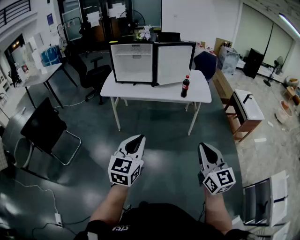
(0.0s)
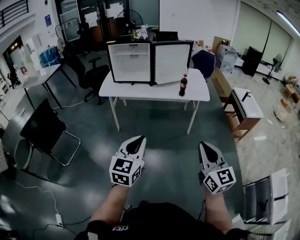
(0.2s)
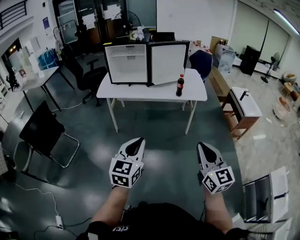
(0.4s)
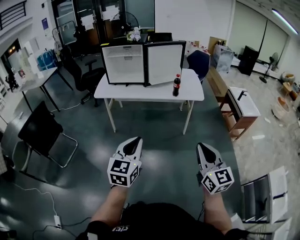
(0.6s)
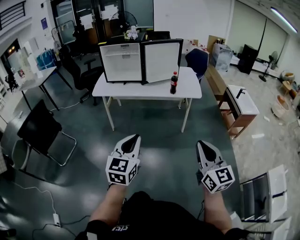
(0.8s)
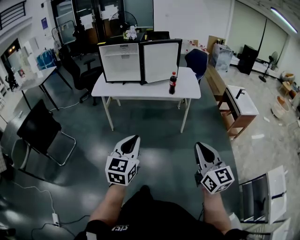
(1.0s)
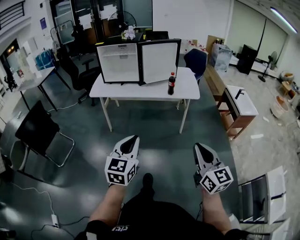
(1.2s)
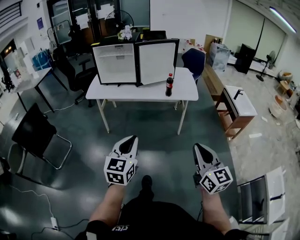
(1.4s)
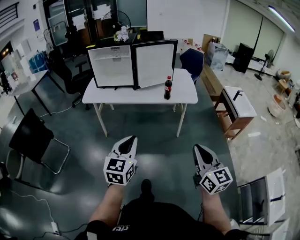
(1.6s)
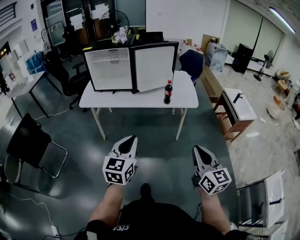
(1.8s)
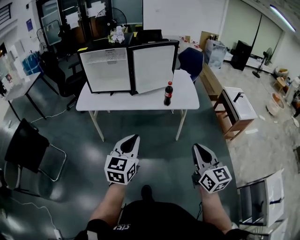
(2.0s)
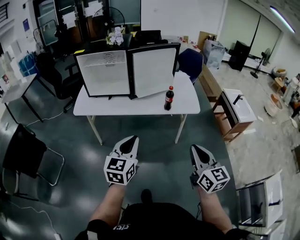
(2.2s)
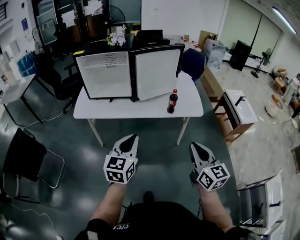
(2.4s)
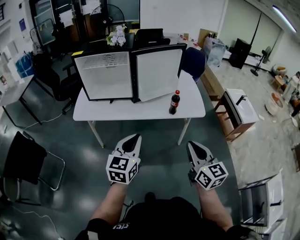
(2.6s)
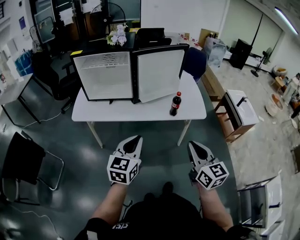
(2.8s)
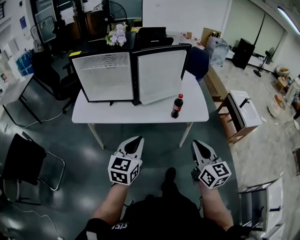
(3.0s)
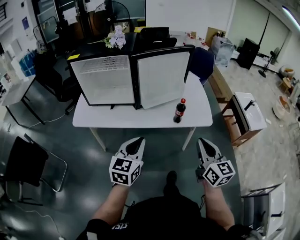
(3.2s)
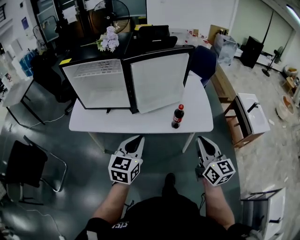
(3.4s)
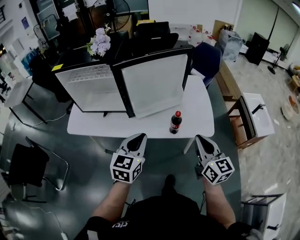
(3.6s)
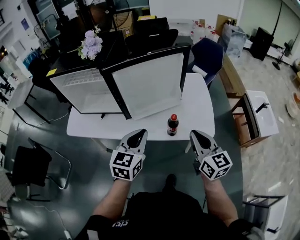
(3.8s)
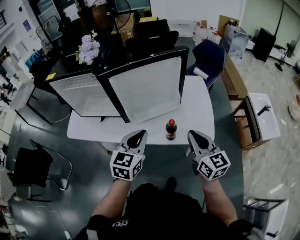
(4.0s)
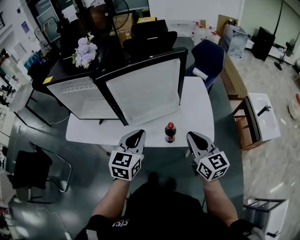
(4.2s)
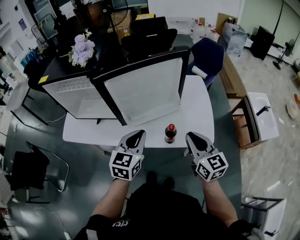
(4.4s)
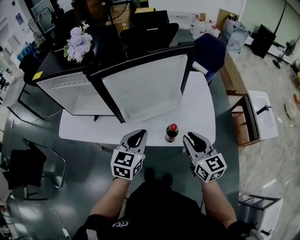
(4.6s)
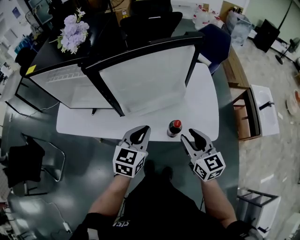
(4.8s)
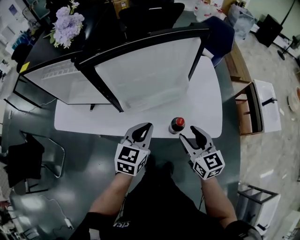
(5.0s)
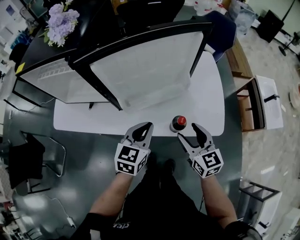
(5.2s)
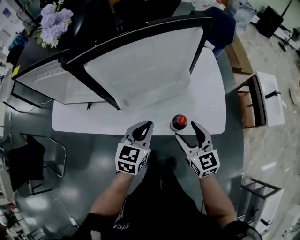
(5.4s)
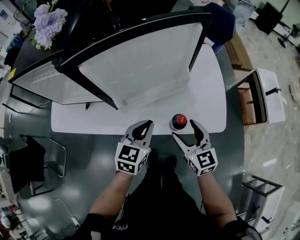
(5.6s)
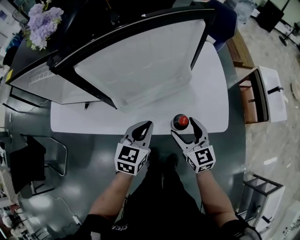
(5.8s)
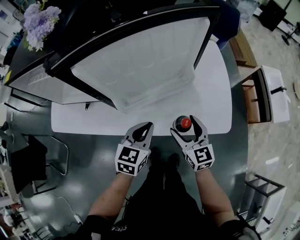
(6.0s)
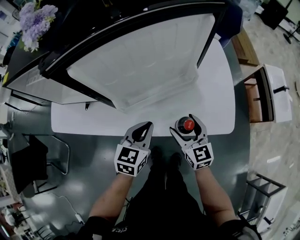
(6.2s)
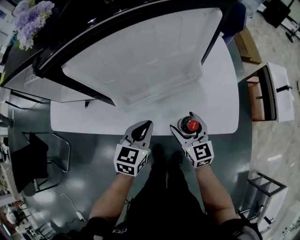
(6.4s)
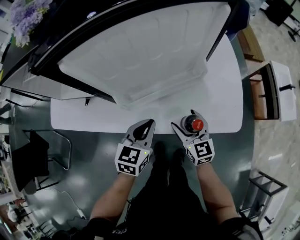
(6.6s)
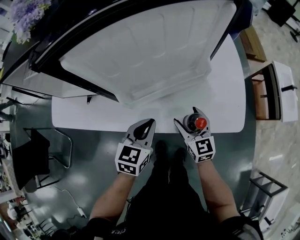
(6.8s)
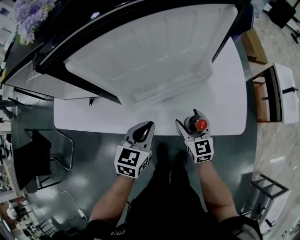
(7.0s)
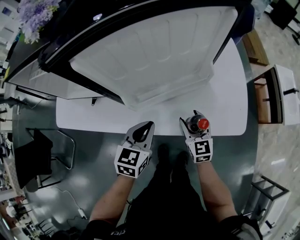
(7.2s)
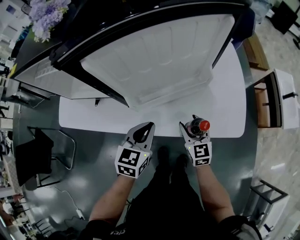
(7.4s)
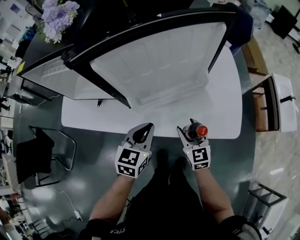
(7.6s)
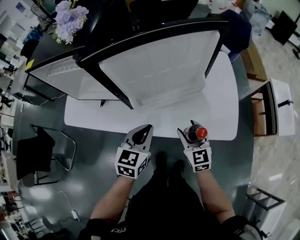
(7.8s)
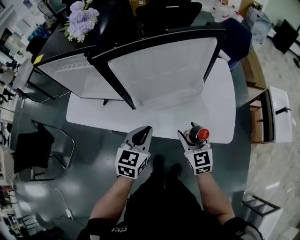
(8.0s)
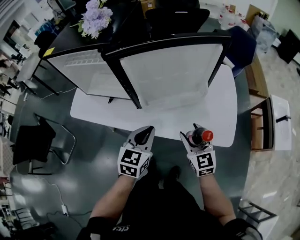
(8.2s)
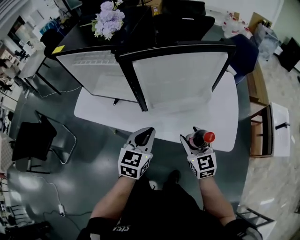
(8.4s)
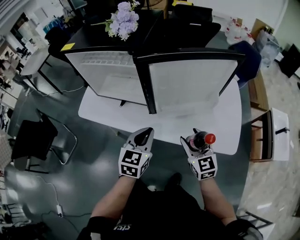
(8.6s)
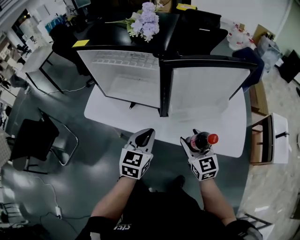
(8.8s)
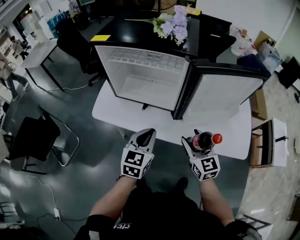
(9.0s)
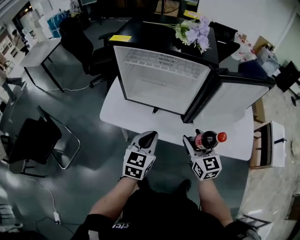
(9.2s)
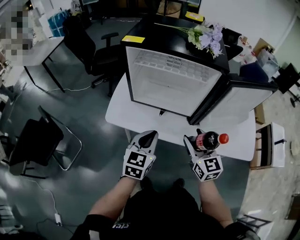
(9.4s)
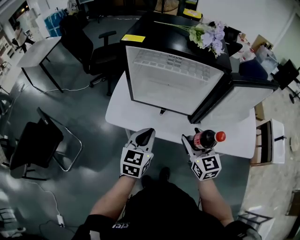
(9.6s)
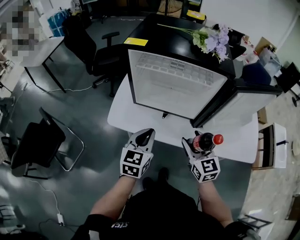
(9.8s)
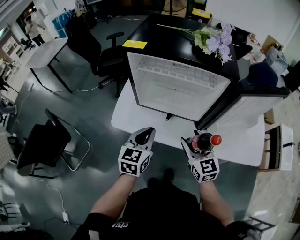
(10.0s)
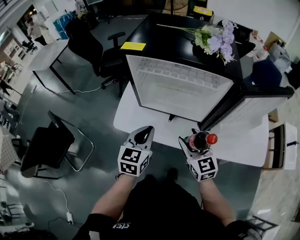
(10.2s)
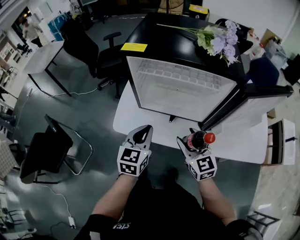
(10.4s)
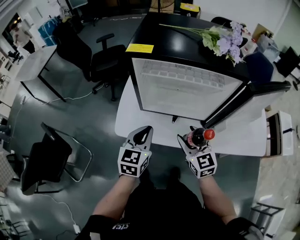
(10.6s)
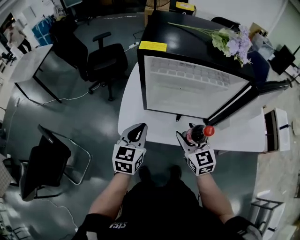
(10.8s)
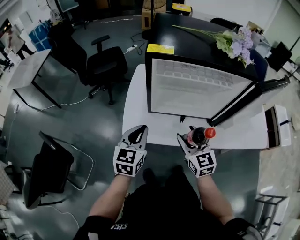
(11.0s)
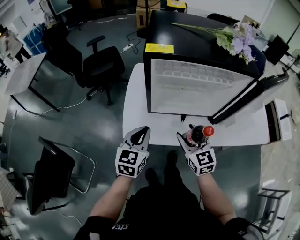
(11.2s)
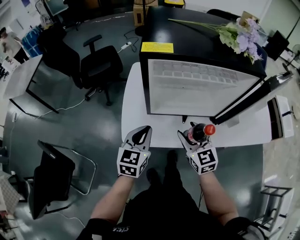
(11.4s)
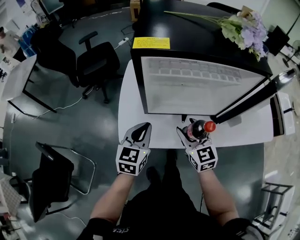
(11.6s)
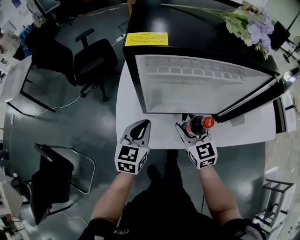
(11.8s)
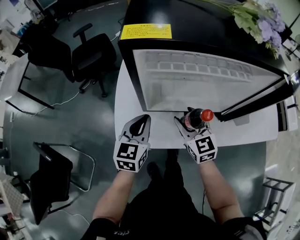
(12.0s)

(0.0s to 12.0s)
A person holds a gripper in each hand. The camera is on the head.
0.0s - 1.6s: The right gripper shifts some 10 cm to the right and forward. The left gripper is displaced forward and to the right by approximately 15 cm.
1.6s - 3.0s: The two grippers go roughly 30 cm forward.
3.0s - 4.4s: The right gripper travels forward by roughly 30 cm. Meanwhile the left gripper heads forward and to the right, covering roughly 35 cm.
4.4s - 6.0s: Both grippers move downward and forward, some 20 cm. The right gripper opens up.
7.6s - 9.0s: The left gripper travels to the left by approximately 25 cm, while the right gripper heads to the left and upward, covering some 30 cm.
9.0s - 10.4s: Both grippers travel together to the left and forward, approximately 20 cm.
10.4s - 12.0s: Both grippers travel together forward, to the left and downward, roughly 20 cm.

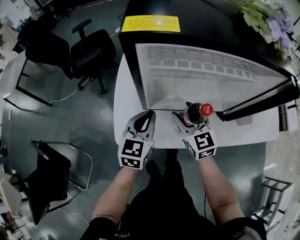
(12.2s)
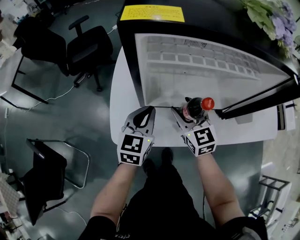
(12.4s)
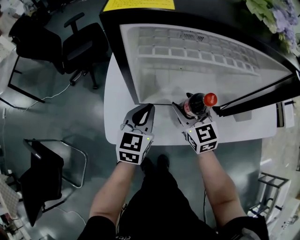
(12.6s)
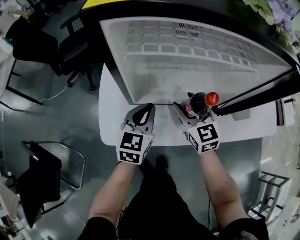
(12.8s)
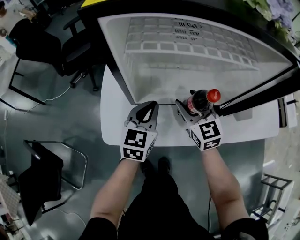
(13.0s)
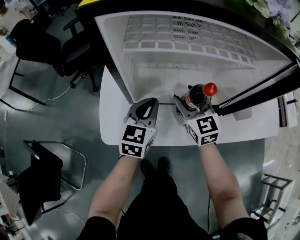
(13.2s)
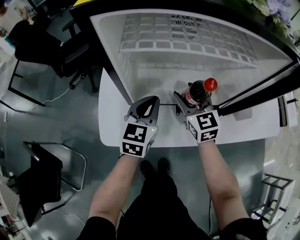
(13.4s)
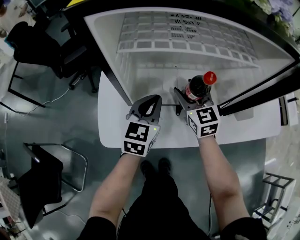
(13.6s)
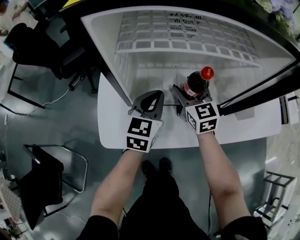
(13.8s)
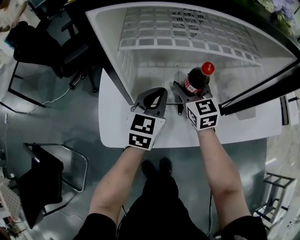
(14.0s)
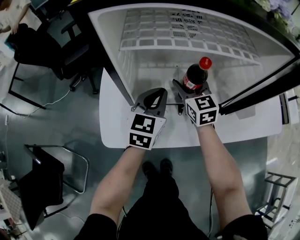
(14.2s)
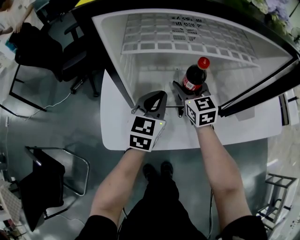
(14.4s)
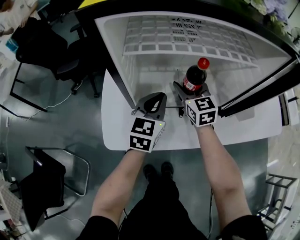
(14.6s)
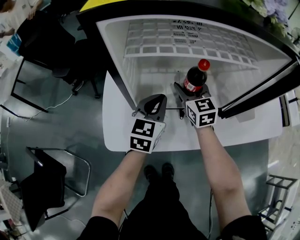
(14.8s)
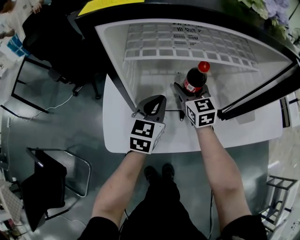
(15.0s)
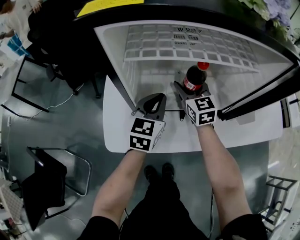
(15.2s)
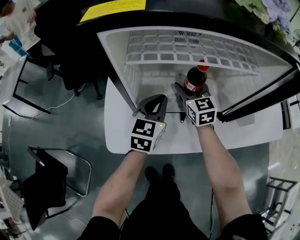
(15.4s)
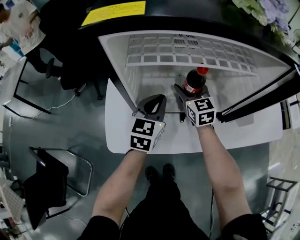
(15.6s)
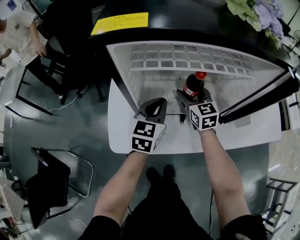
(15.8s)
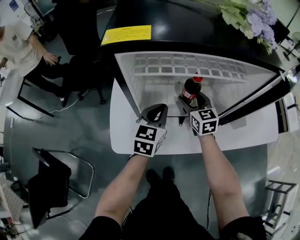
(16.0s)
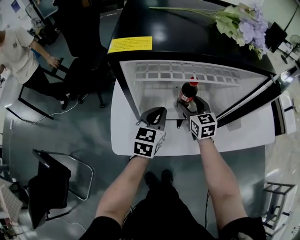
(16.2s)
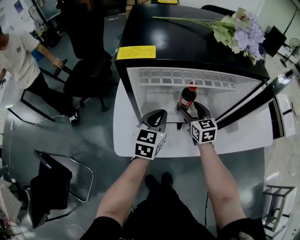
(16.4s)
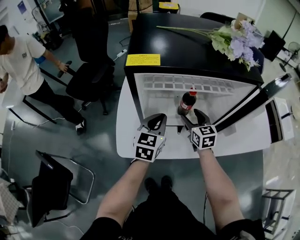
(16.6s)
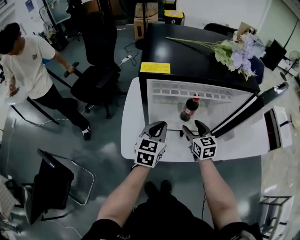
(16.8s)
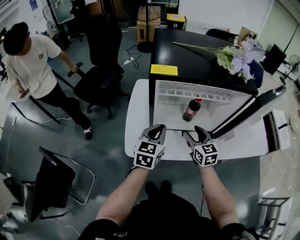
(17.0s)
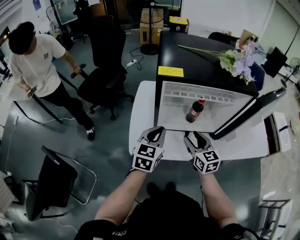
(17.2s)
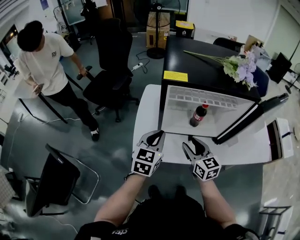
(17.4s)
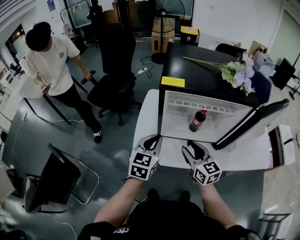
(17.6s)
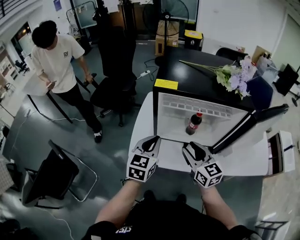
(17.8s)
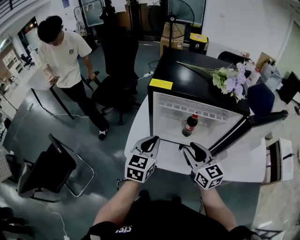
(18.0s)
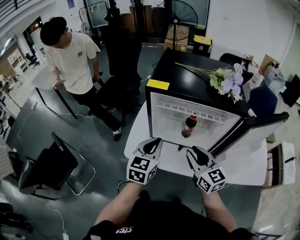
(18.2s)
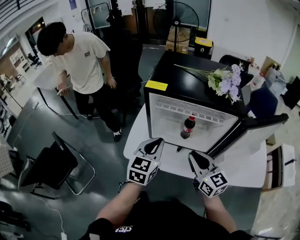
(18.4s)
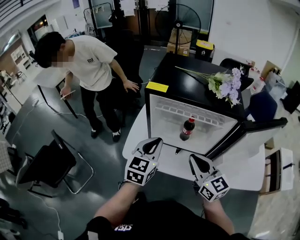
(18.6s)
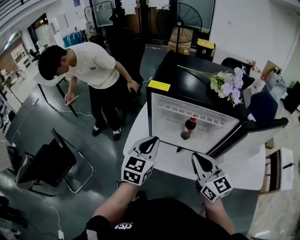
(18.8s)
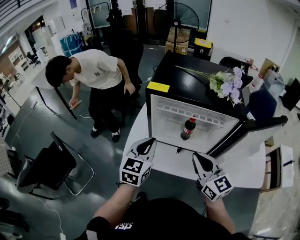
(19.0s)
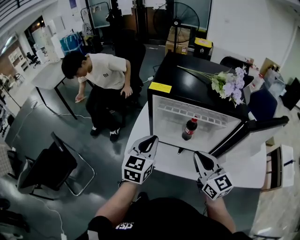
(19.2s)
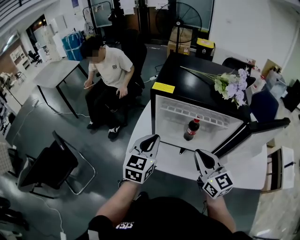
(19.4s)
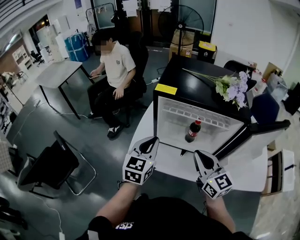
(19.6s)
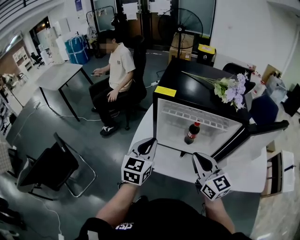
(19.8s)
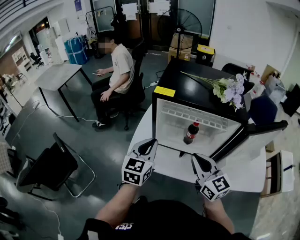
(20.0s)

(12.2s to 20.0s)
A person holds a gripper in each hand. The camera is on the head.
12.2s - 13.8s: The left gripper travels to the right and forward by about 10 cm; the right gripper heads forward and to the right, covering approximately 10 cm.
13.8s - 15.4s: The grippers make only small movements.
15.4s - 16.8s: The left gripper shifts roughly 10 cm upward and backward; the right gripper is displaced backward and upward by approximately 15 cm.
16.8s - 18.4s: The left gripper travels upward and backward by some 15 cm; the right gripper moves upward and backward, about 20 cm, changes its angle by roughly 30 degrees, and closes.
18.4s - 20.0s: The left gripper moves to the left, approximately 5 cm.

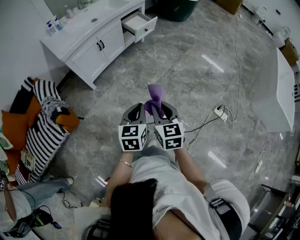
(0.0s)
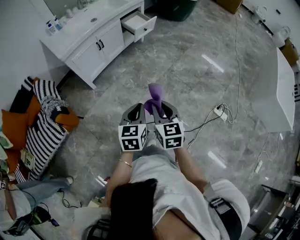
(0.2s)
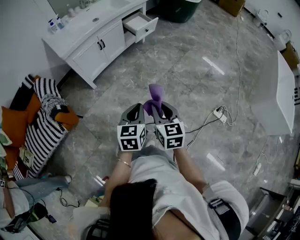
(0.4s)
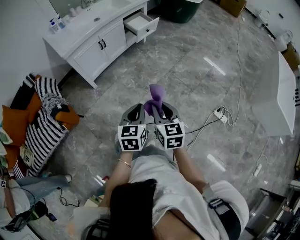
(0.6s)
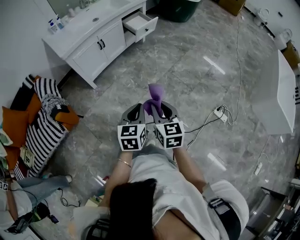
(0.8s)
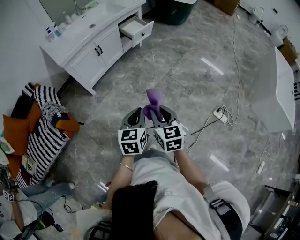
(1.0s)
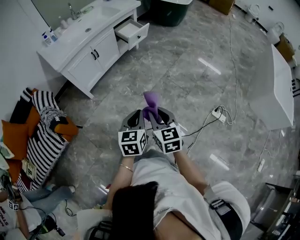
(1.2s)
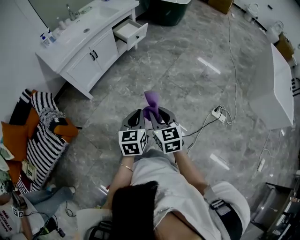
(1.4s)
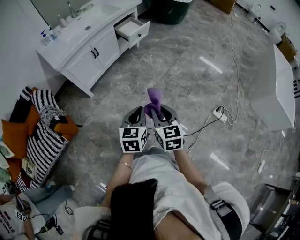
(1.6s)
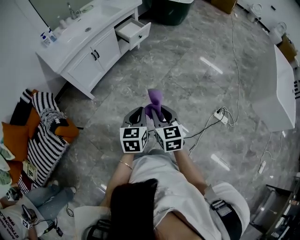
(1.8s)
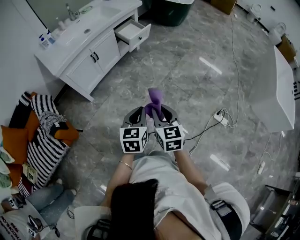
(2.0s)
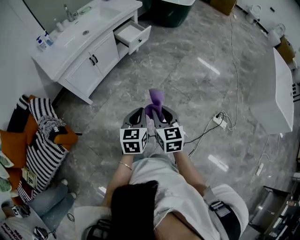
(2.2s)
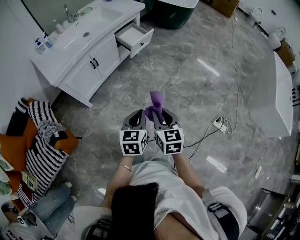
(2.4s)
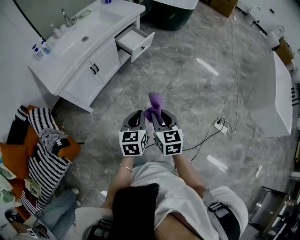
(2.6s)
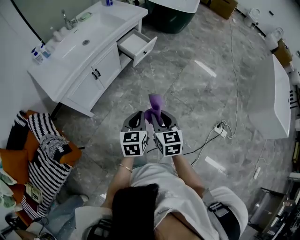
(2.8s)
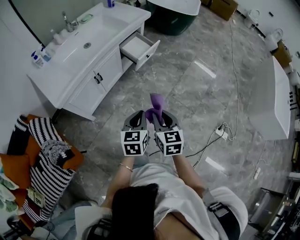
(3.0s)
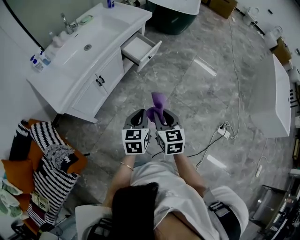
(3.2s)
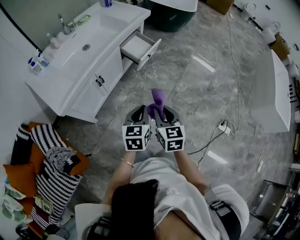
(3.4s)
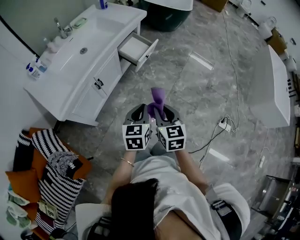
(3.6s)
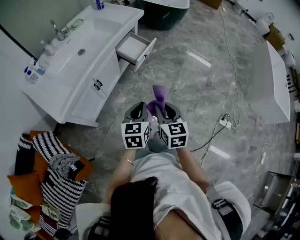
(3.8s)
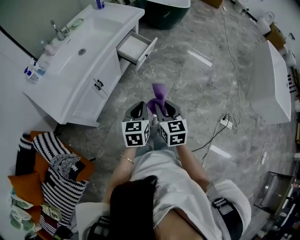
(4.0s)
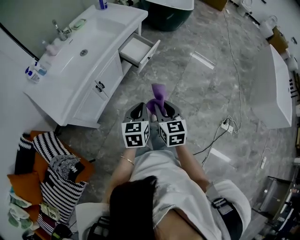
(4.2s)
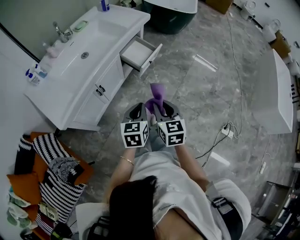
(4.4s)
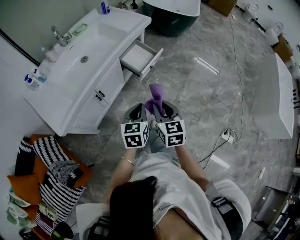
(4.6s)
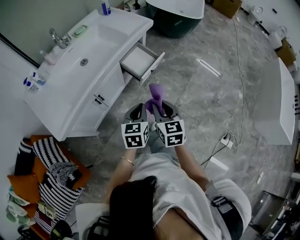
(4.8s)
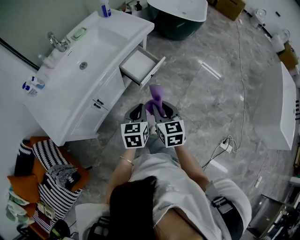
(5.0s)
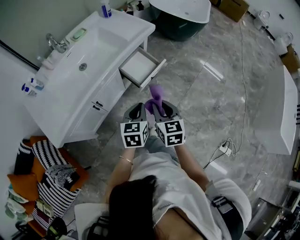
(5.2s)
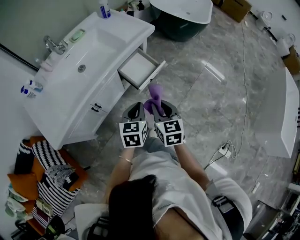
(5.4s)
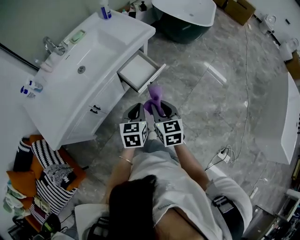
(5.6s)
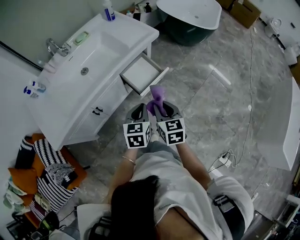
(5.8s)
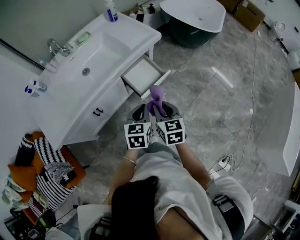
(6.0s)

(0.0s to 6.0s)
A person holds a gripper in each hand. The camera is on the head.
0.0s - 1.6s: The grippers move only a little.
1.6s - 3.0s: The grippers both shift forward and to the left by roughly 30 cm.
3.0s - 4.4s: The grippers both shift forward by roughly 15 cm.
4.4s - 6.0s: Both grippers move forward, about 25 cm.
